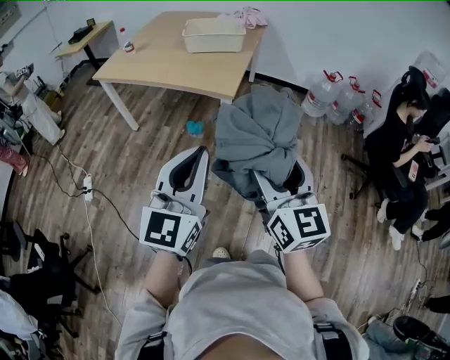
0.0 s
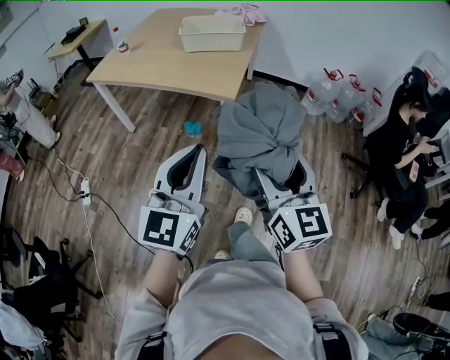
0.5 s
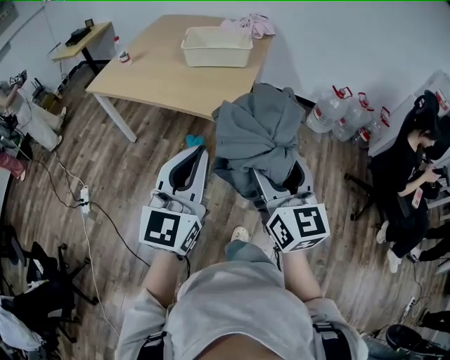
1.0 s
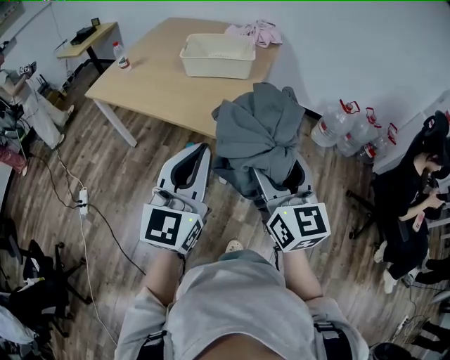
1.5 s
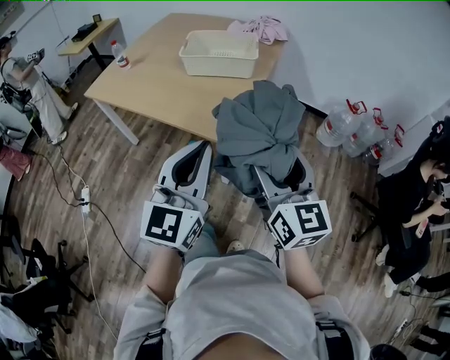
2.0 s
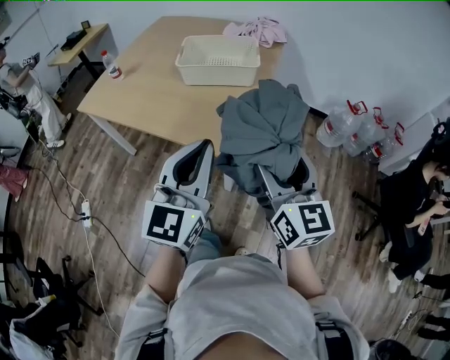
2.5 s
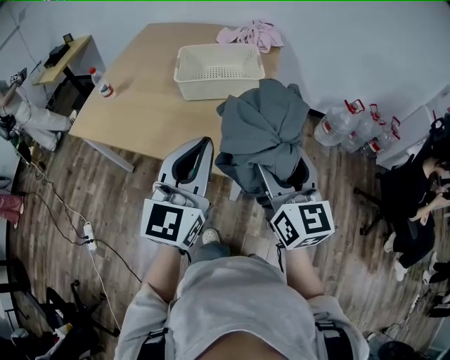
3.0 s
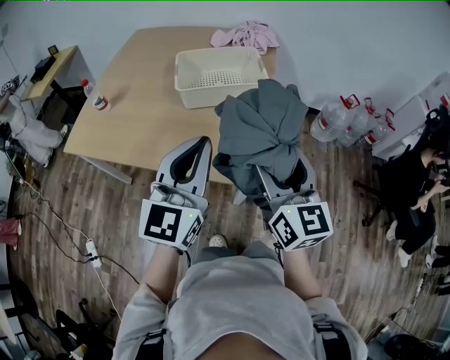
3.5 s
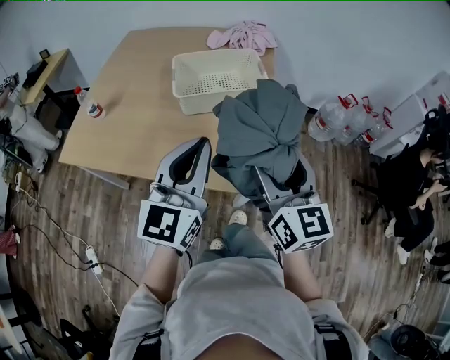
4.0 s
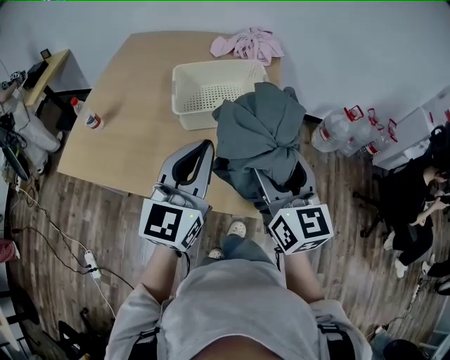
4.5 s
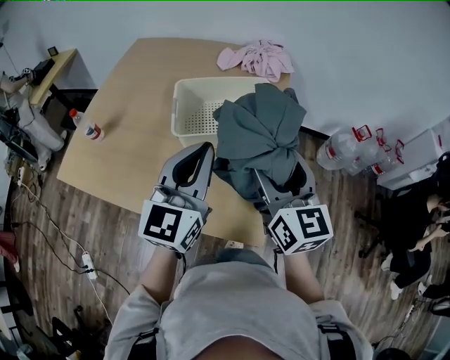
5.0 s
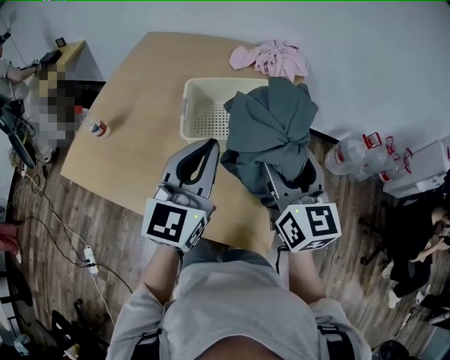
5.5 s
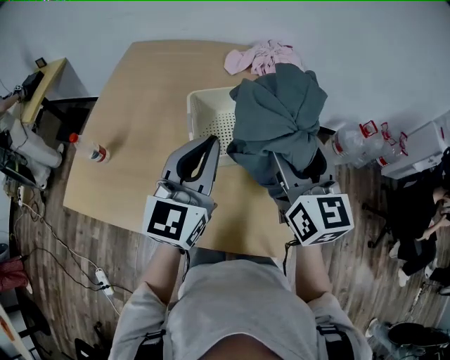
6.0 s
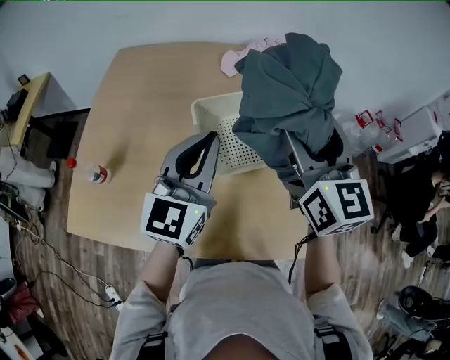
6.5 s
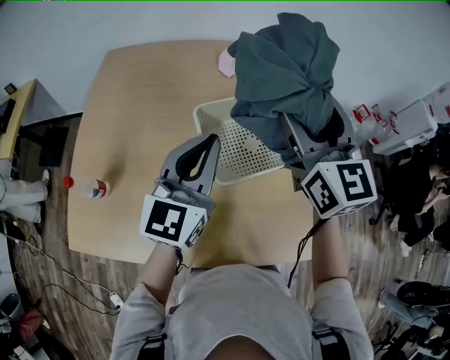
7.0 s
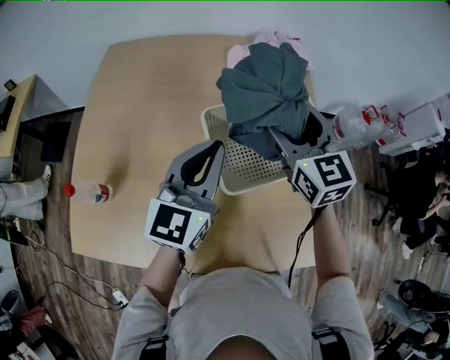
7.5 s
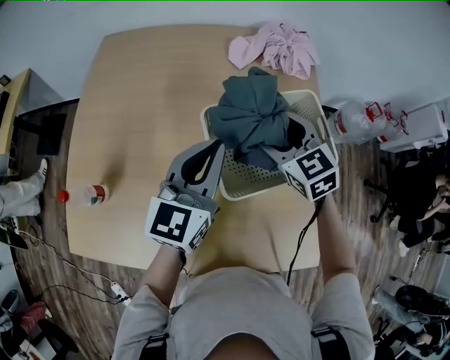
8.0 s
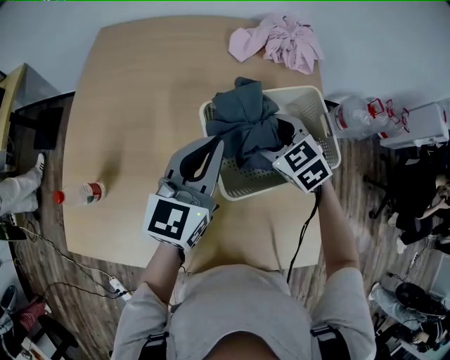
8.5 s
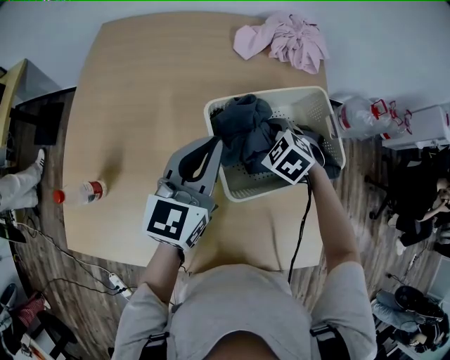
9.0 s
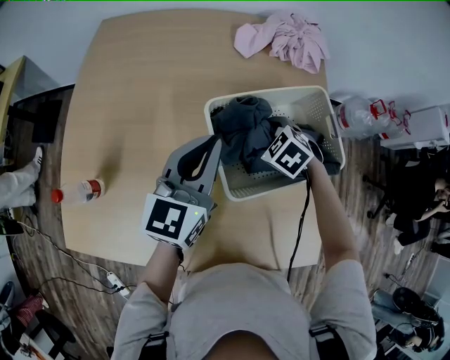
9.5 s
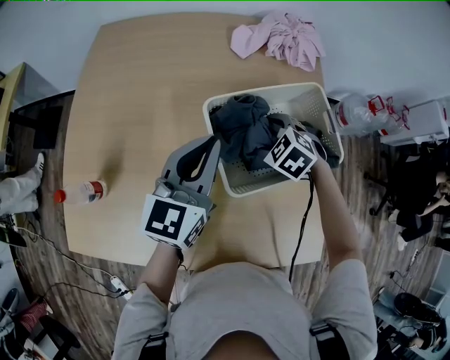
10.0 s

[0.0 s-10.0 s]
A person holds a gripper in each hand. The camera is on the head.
0.0 to 2.0 s: Both grippers move forward, approximately 30 cm.
2.0 to 4.0 s: The grippers both shift forward and to the left by about 30 cm.
4.0 to 6.0 s: Both grippers move forward, some 25 cm.
6.0 to 8.0 s: The left gripper shifts some 20 cm forward, to the left and downward. The right gripper goes about 25 cm forward, downward and to the left, and turns by some 40 degrees.
8.0 to 10.0 s: The right gripper travels downward by about 10 cm, and tilts its fingers some 30 degrees downward.

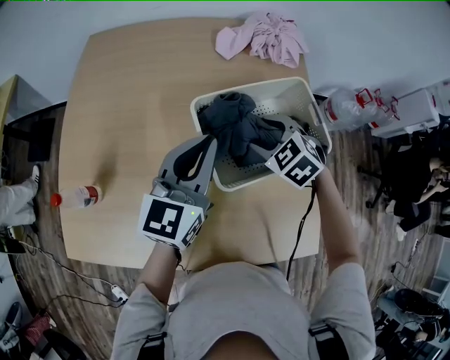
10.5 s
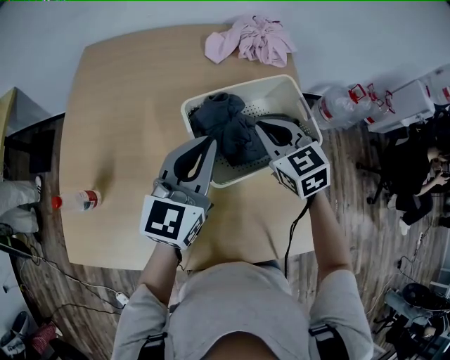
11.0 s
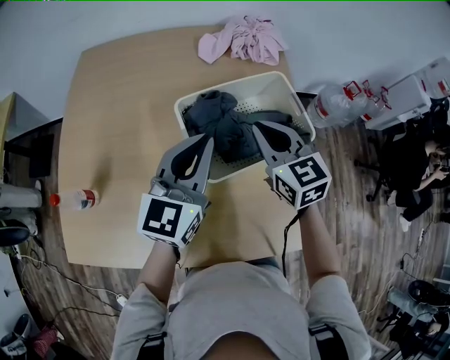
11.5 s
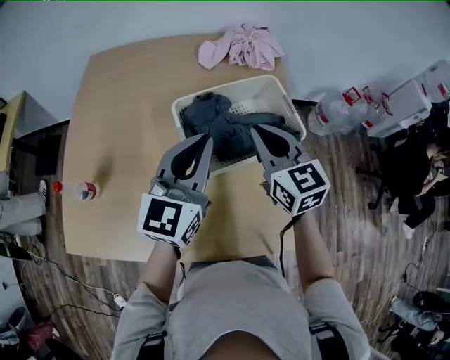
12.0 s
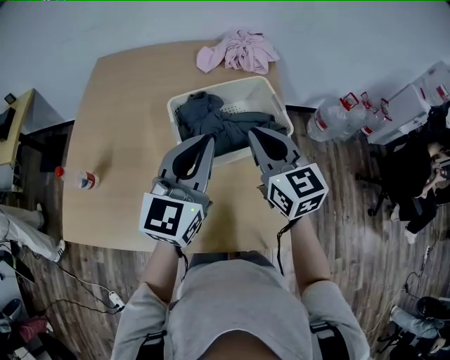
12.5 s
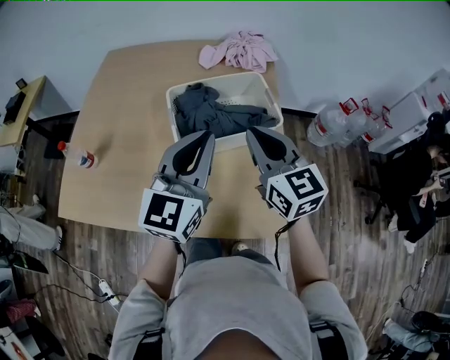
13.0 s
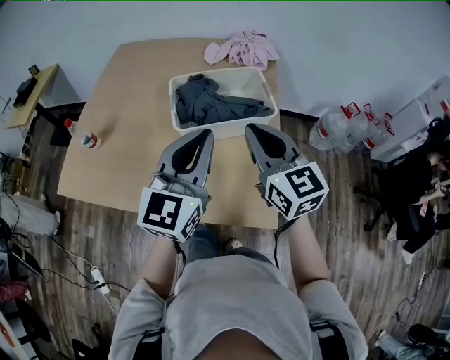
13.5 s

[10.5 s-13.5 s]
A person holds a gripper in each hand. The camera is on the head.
10.5 to 12.0 s: The right gripper shifts approximately 15 cm upward and backward, points its fingers some 40 degrees further upward, and closes. Meanwhile the left gripper shifts approximately 10 cm to the right and backward.
12.0 to 13.5 s: The left gripper heads backward and to the right, covering approximately 20 cm, while the right gripper heads backward, to the right and upward, covering roughly 20 cm.

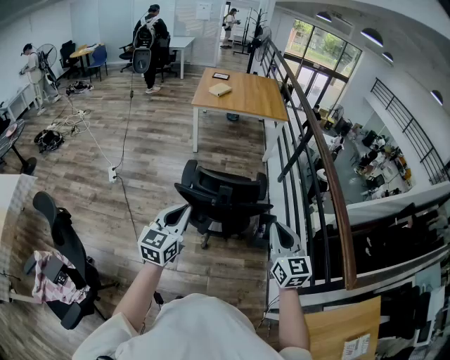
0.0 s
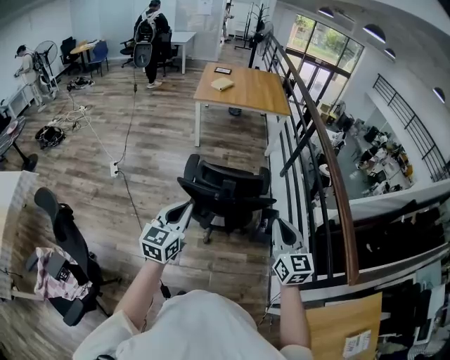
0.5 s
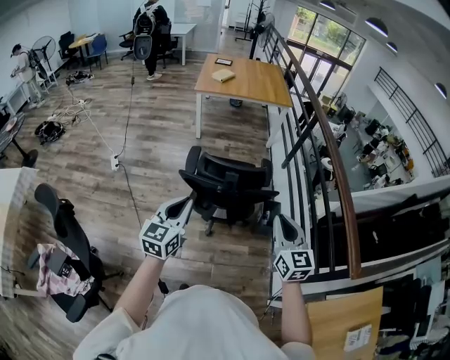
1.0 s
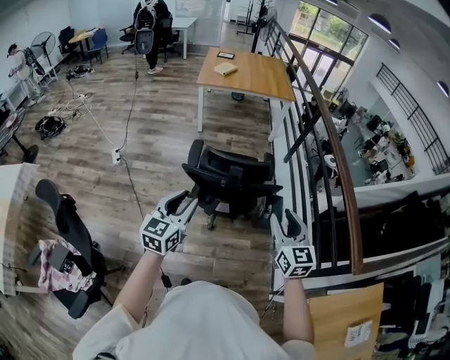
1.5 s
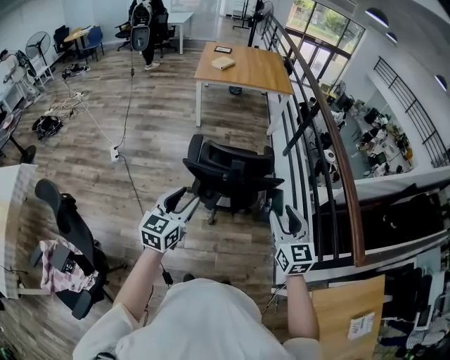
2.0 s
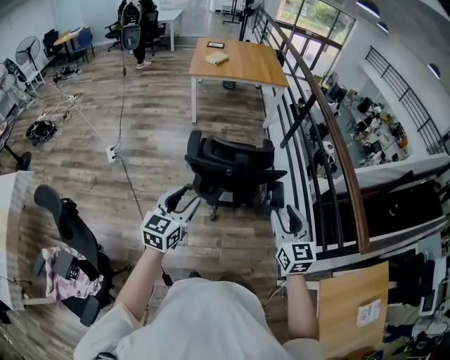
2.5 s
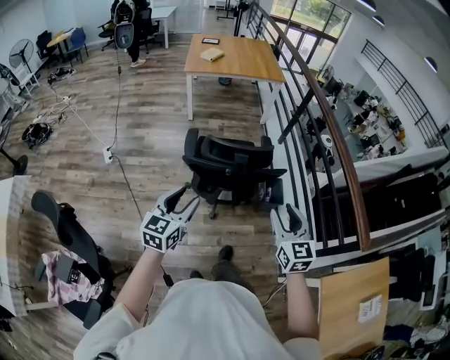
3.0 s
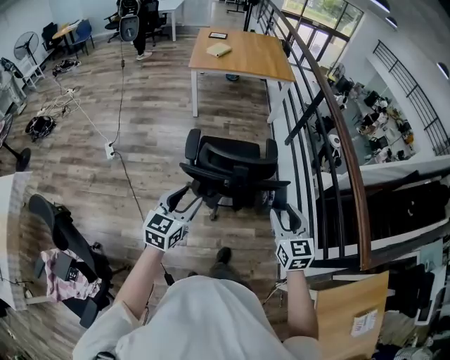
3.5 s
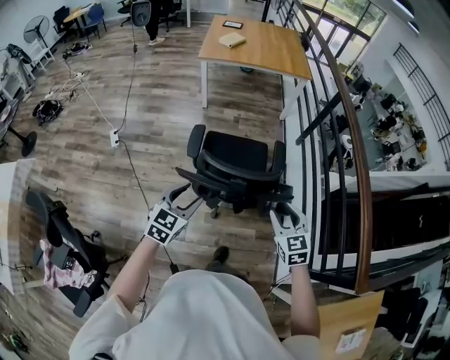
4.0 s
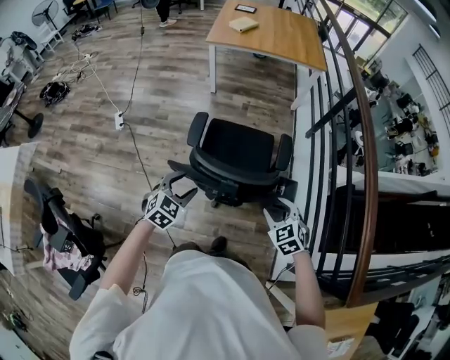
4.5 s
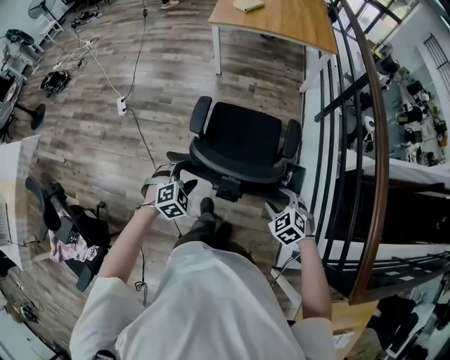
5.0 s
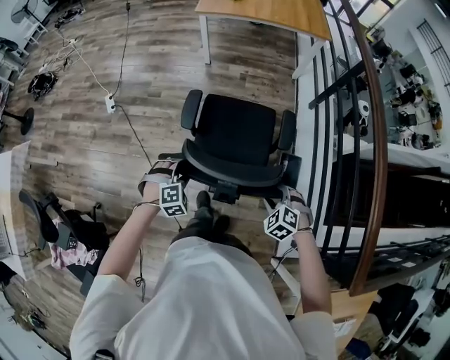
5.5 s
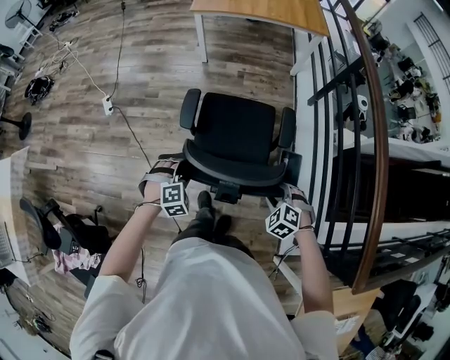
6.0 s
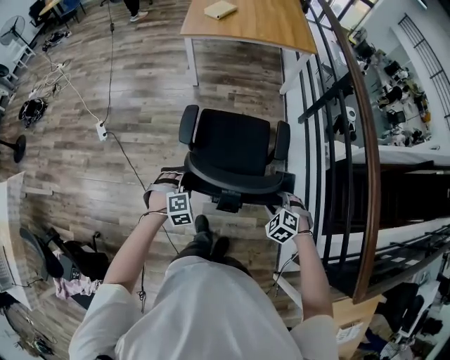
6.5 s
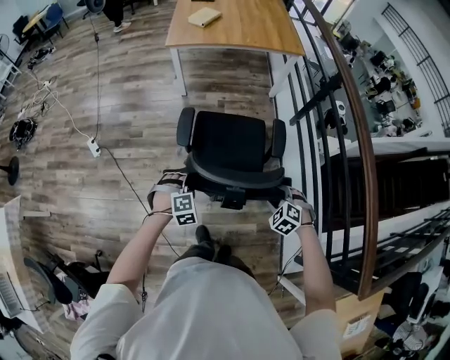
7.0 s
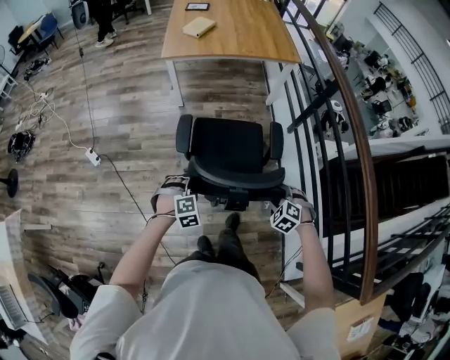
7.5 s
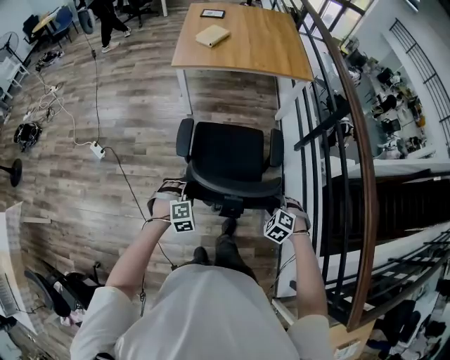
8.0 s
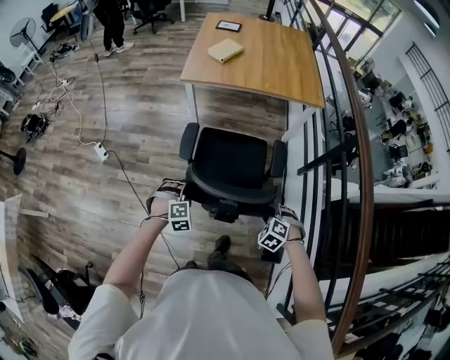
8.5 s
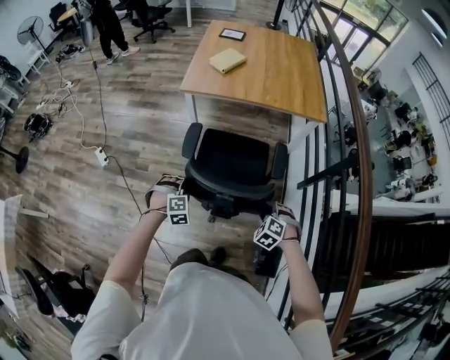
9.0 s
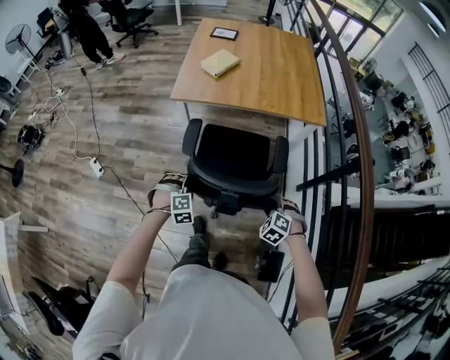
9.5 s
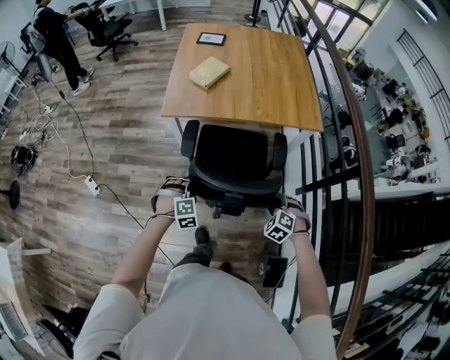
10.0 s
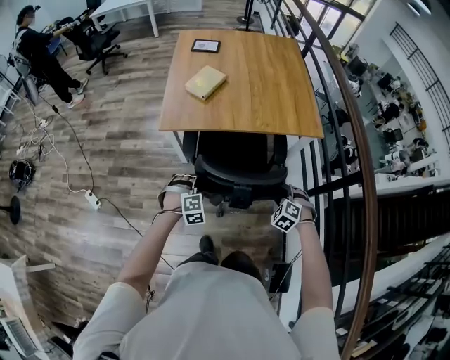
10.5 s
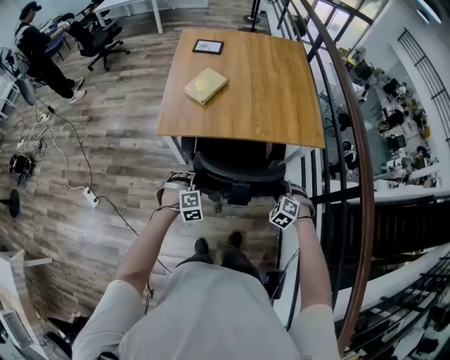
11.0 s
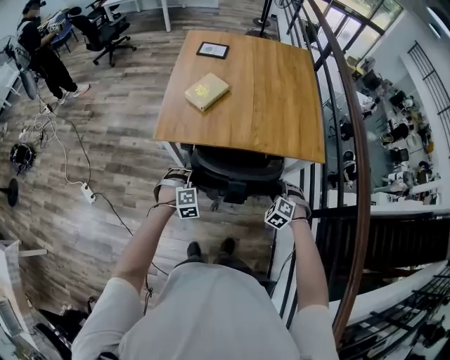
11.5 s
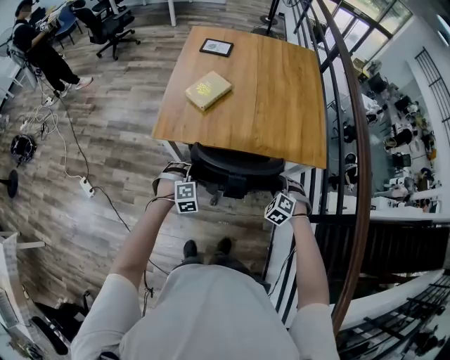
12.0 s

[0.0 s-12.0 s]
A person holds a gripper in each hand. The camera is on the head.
0.0 to 2.0 s: The right gripper ends up approximately 5 cm from where it was, and opens up; the left gripper shifts by about 5 cm, and opens.
2.0 to 4.0 s: The grippers both shift forward and downward by approximately 20 cm. The right gripper rotates roughly 20 degrees. The left gripper changes its angle by some 20 degrees.
4.0 to 6.0 s: Both grippers move downward and forward, approximately 20 cm. The right gripper tilts its fingers about 30 degrees downward; the left gripper points its fingers about 30 degrees further downward.
6.0 to 8.0 s: The grippers both shift forward by about 25 cm.
8.0 to 10.0 s: The two grippers travel together, forward, roughly 40 cm.
10.0 to 12.0 s: Both grippers move forward, approximately 30 cm.

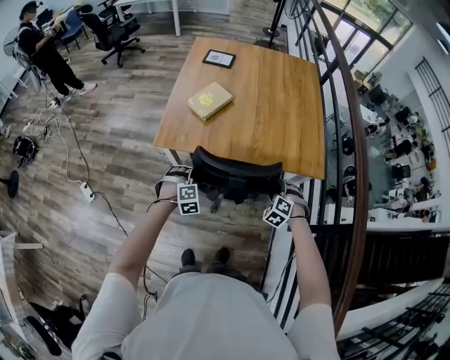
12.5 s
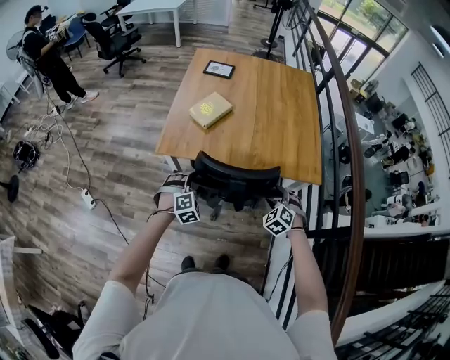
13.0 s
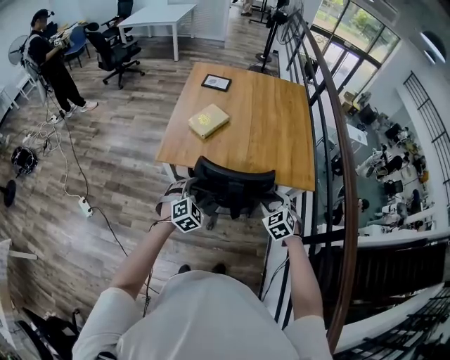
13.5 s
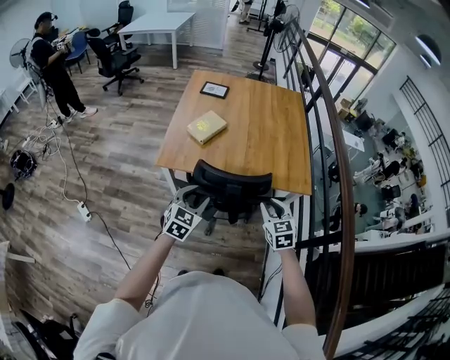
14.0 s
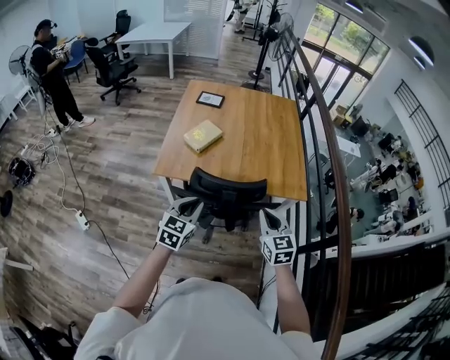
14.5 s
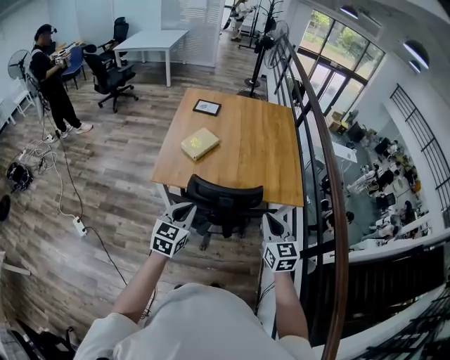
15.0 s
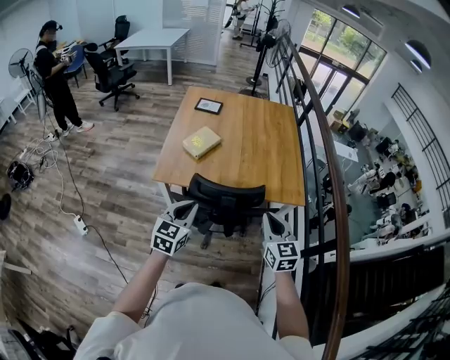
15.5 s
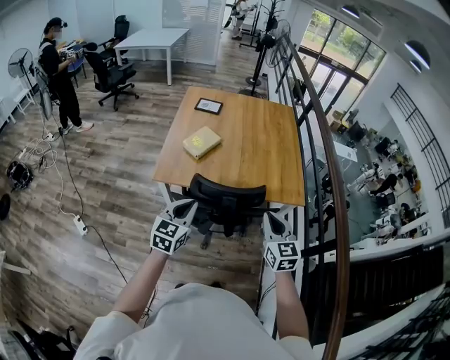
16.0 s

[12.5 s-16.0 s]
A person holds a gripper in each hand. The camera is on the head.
12.5 to 14.5 s: The grippers both shift upward and backward by approximately 25 cm. The left gripper rotates around the line of its fingers by roughly 60 degrees, counterclockwise from behind, and closes; the right gripper tilts its fingers approximately 40 degrees upward, and closes up.
14.5 to 16.0 s: There are only small adjustments of the grippers.
